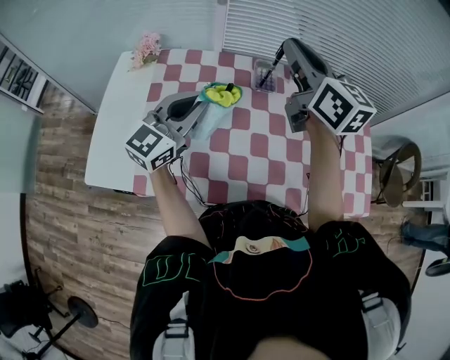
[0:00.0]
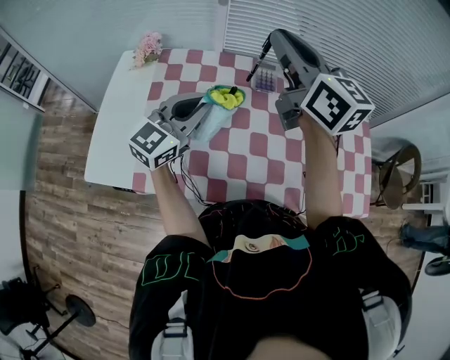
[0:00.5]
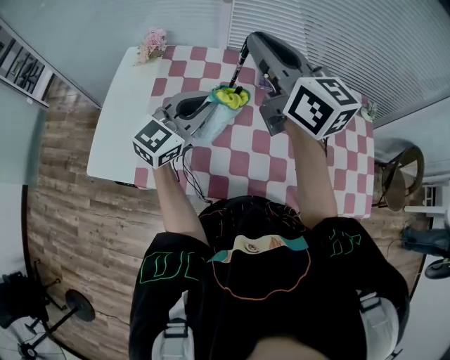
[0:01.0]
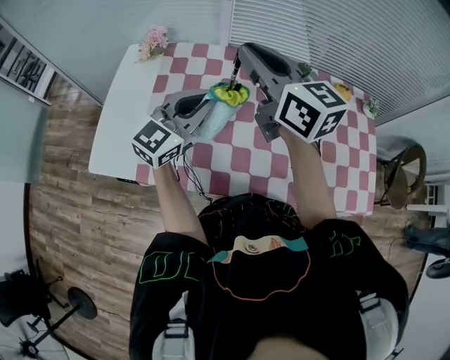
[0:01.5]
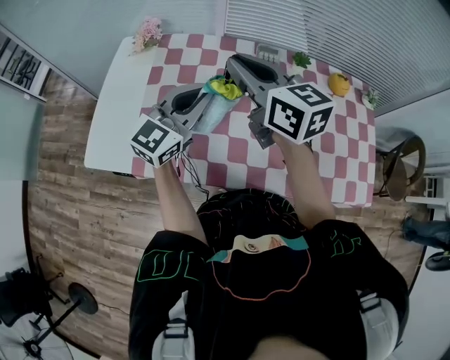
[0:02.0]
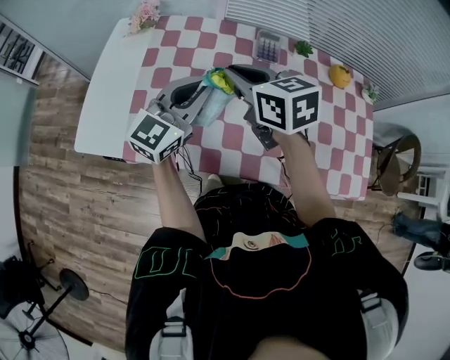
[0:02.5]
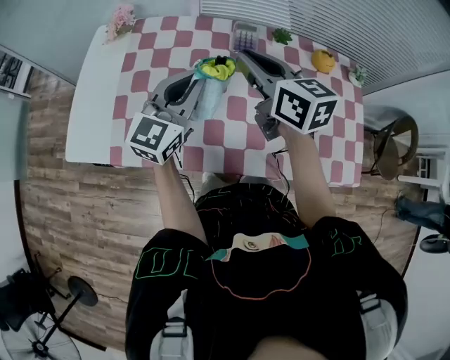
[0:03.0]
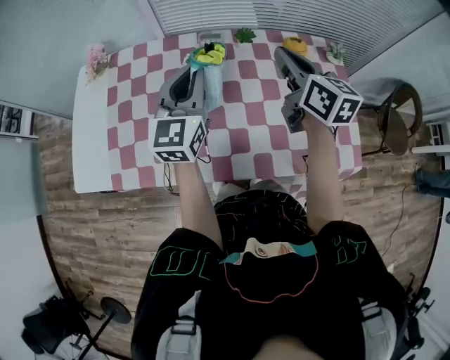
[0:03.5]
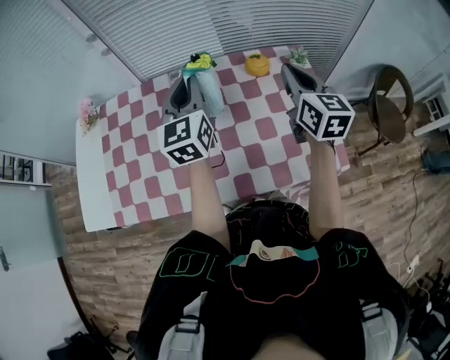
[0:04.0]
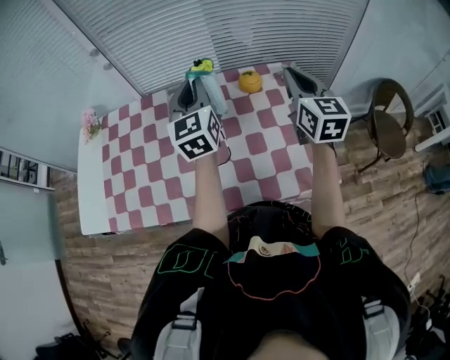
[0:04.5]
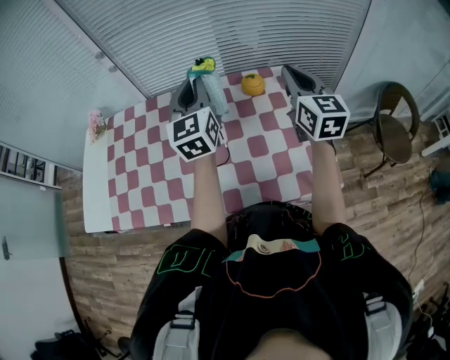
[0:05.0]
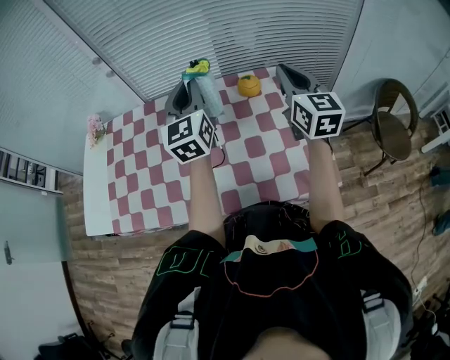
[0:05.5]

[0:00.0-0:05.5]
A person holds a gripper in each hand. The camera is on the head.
0:00.0 to 0:02.0: The right gripper shifts roughly 15 cm to the left, backward and downward.
0:02.0 to 0:03.5: The right gripper heads to the right, covering approximately 30 cm, and rotates approximately 30 degrees. Meanwhile the left gripper shifts about 15 cm to the right.
0:03.5 to 0:05.5: The grippers both shift to the right by approximately 20 cm. The right gripper rotates approximately 20 degrees.

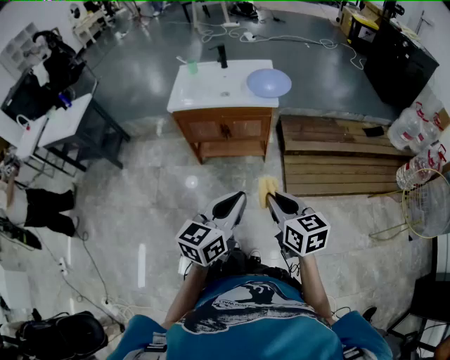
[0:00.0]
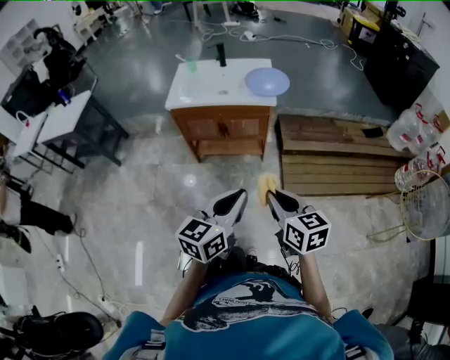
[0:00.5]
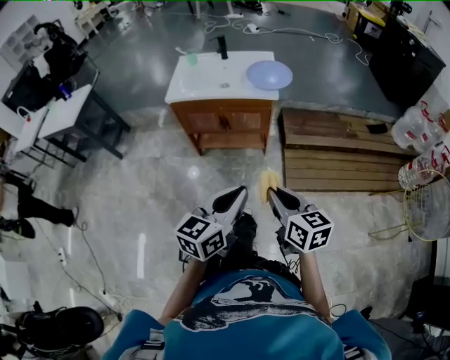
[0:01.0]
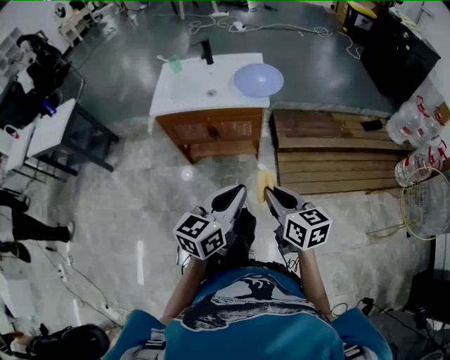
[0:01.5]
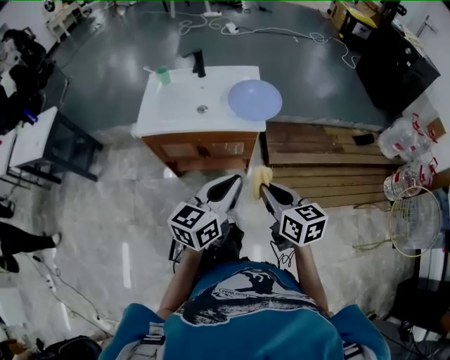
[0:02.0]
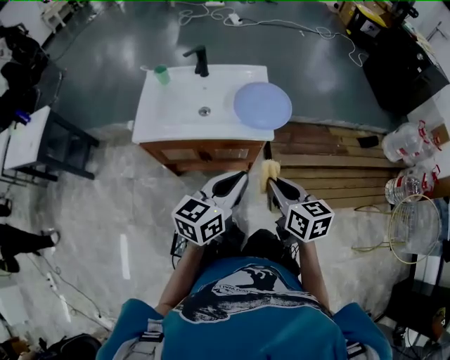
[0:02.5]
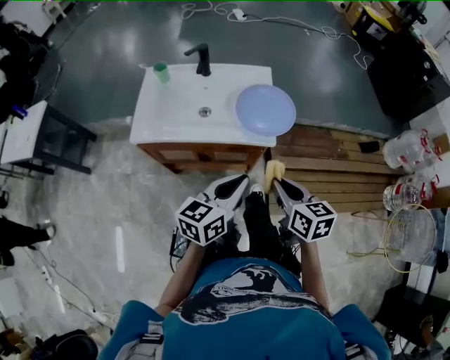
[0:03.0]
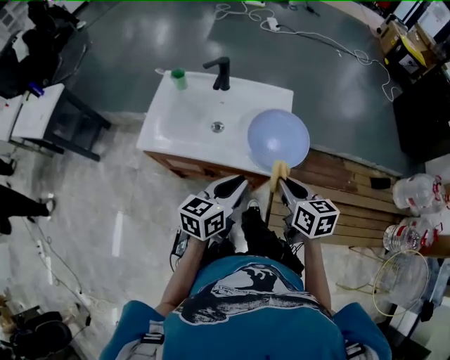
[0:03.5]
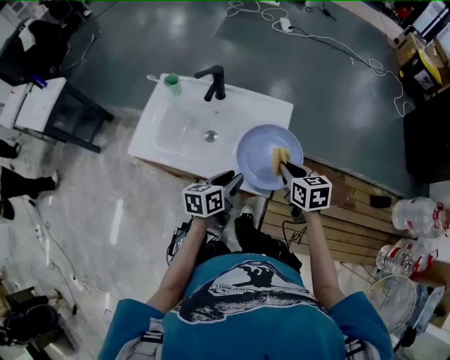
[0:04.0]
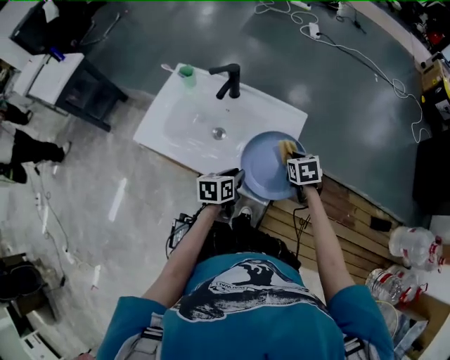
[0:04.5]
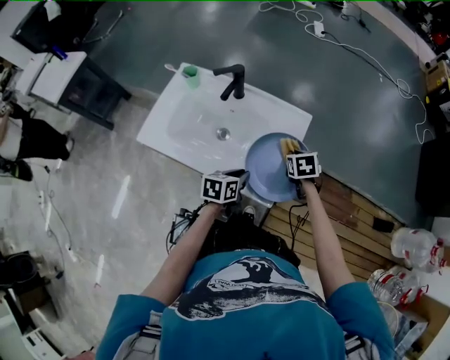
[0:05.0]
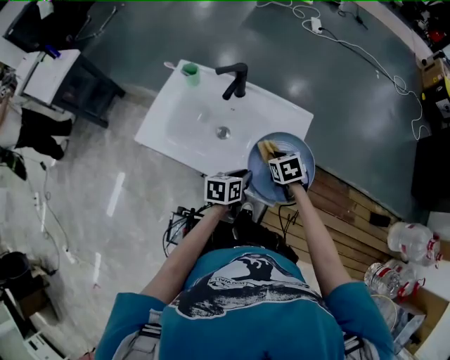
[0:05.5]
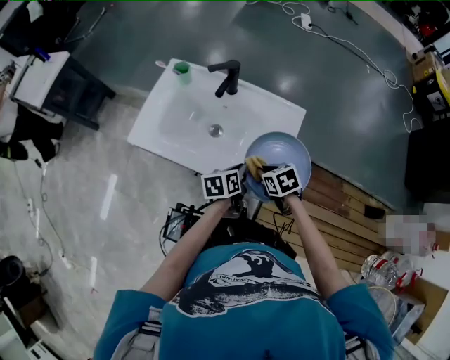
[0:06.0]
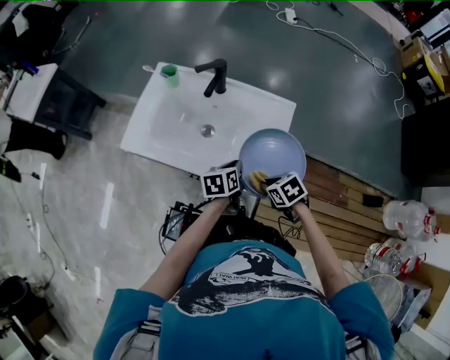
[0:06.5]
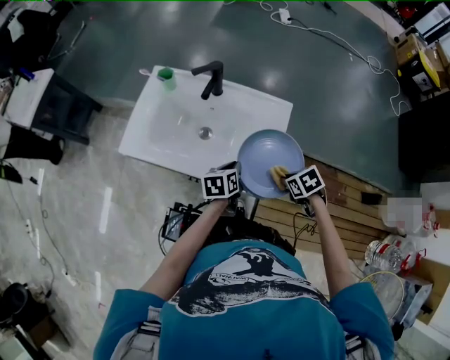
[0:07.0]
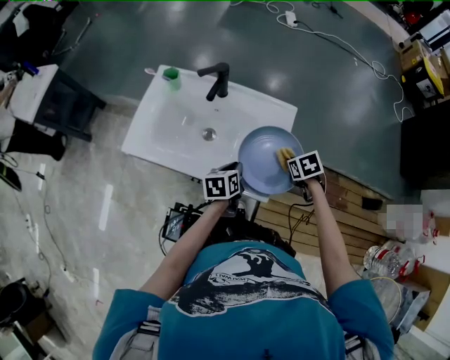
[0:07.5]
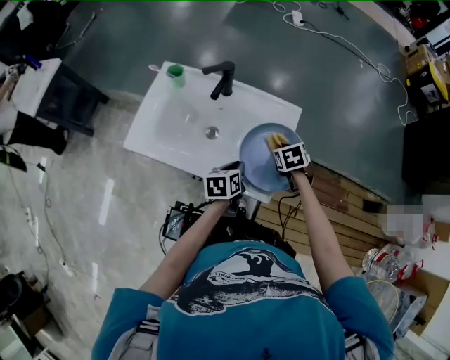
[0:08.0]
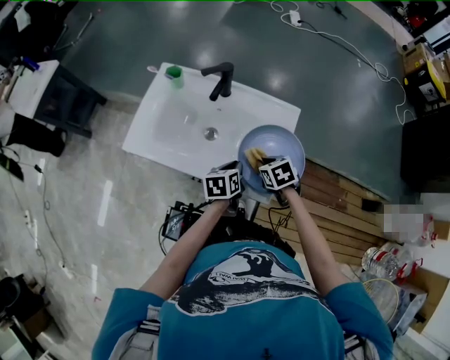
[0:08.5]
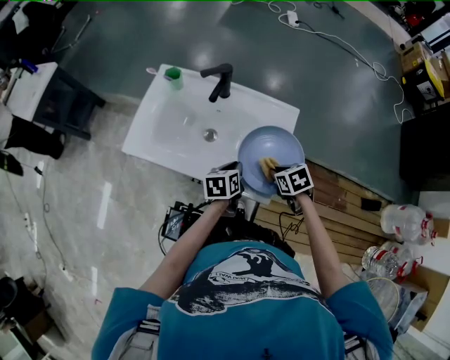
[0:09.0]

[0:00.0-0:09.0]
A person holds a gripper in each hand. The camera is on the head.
0:00.0 to 0:02.0: The two grippers go about 25 cm forward.
0:02.0 to 0:04.5: The right gripper is displaced forward by approximately 50 cm, and tilts its fingers approximately 30 degrees downward; the left gripper is displaced forward and downward by approximately 40 cm, and tilts its fingers approximately 30 degrees downward.
0:04.5 to 0:07.0: The right gripper moves roughly 10 cm, and rotates approximately 20 degrees.
0:07.0 to 0:09.0: The right gripper reaches roughly 15 cm forward, then returns.

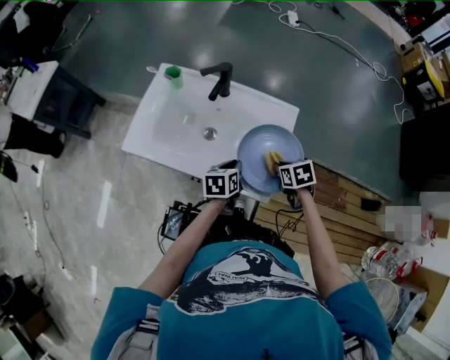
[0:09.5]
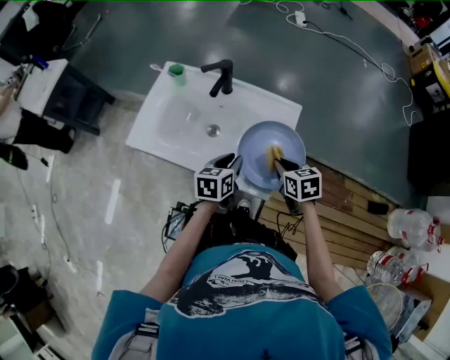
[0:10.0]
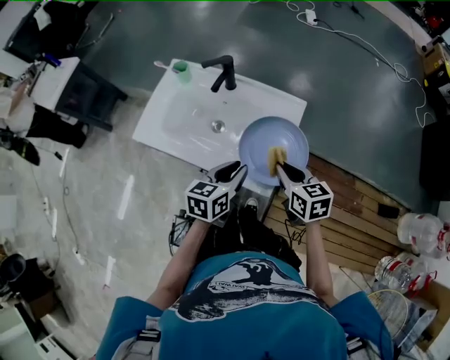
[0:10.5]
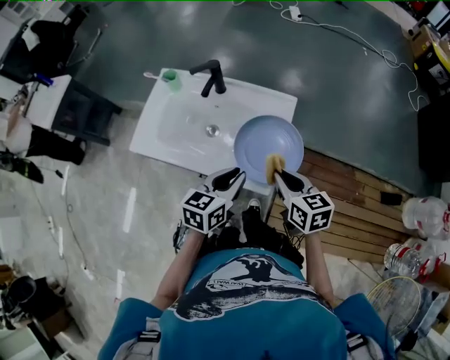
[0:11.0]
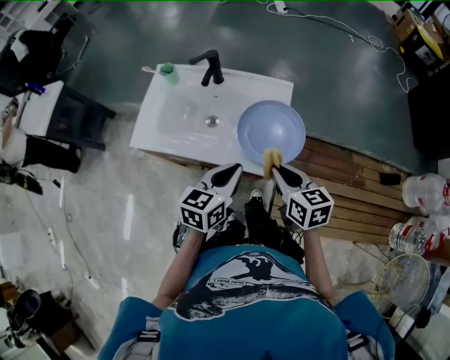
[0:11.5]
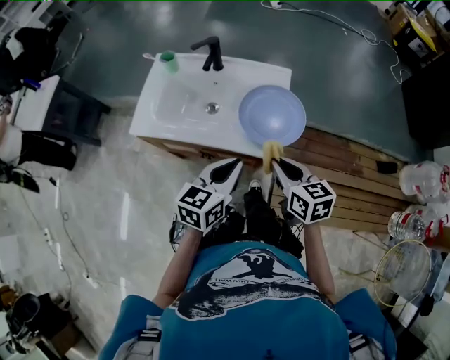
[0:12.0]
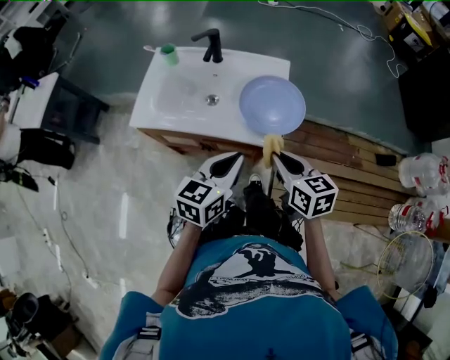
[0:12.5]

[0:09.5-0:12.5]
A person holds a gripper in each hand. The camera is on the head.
0:09.5 to 0:11.0: The two grippers go roughly 15 cm upward and backward. The right gripper tilts its fingers approximately 30 degrees upward. Meanwhile the left gripper rotates some 20 degrees.
0:11.0 to 0:12.5: Both grippers travel together backward, some 10 cm.

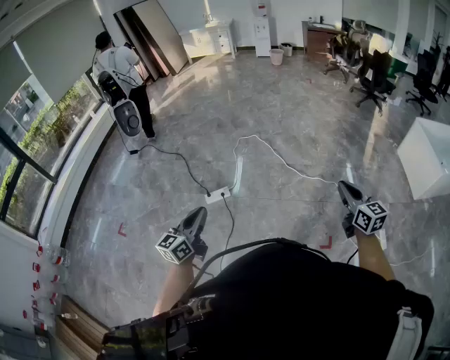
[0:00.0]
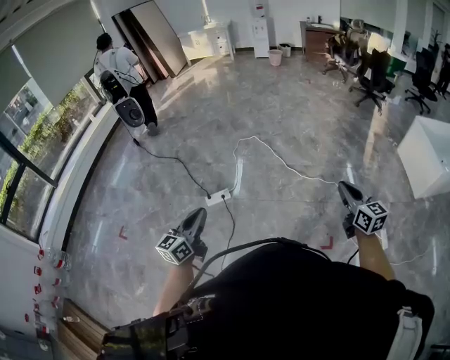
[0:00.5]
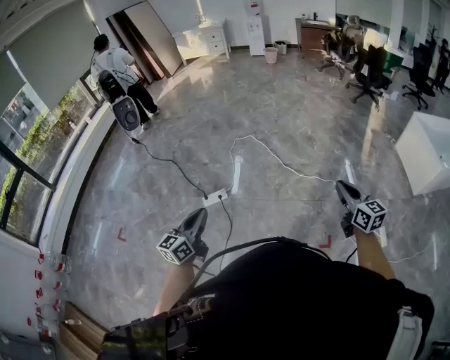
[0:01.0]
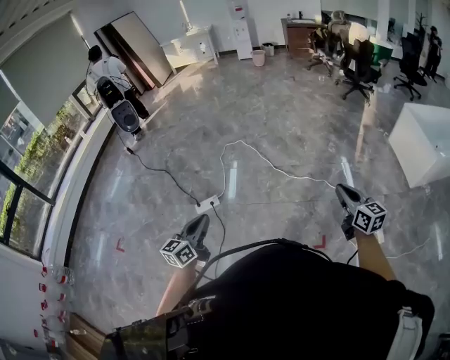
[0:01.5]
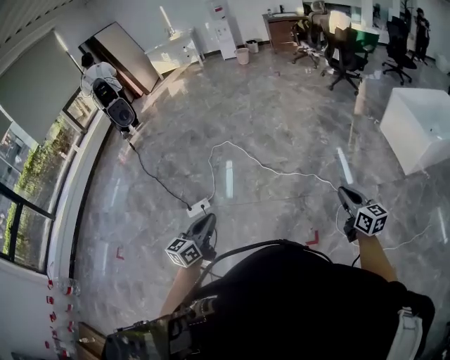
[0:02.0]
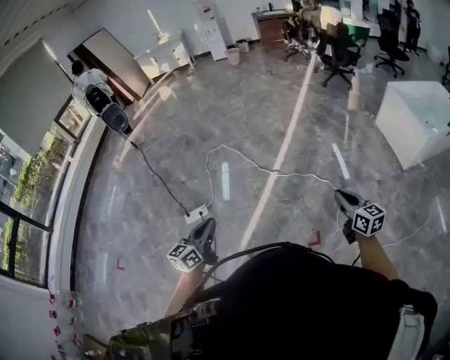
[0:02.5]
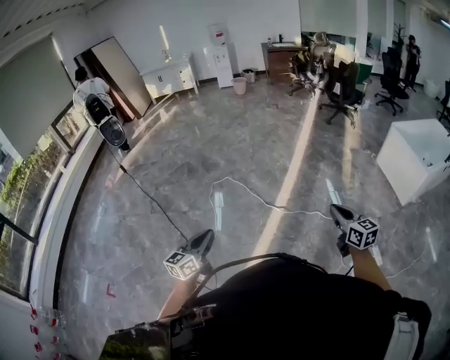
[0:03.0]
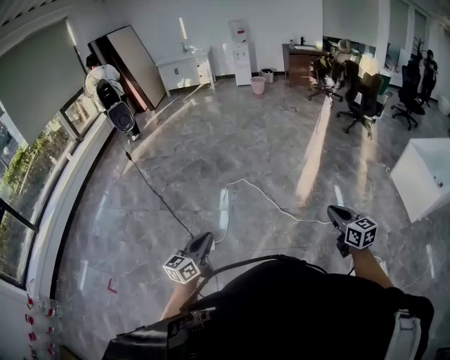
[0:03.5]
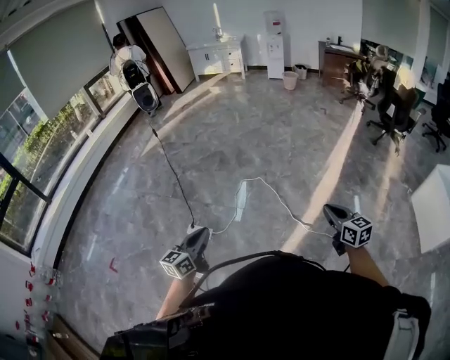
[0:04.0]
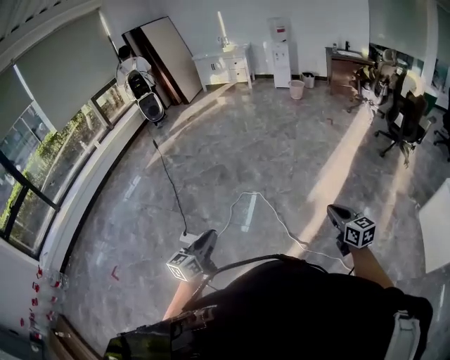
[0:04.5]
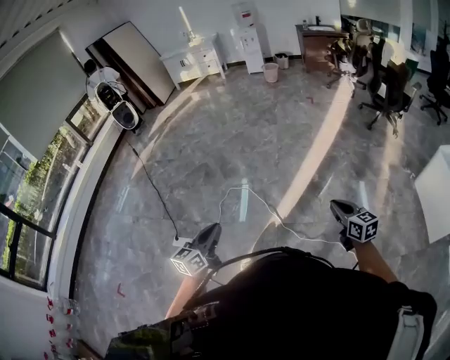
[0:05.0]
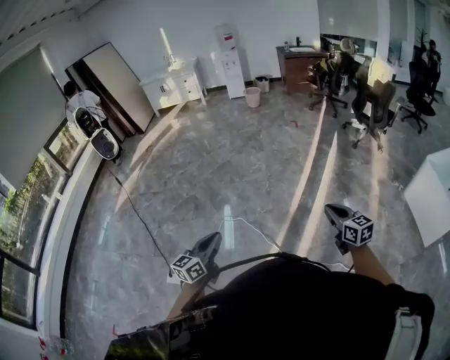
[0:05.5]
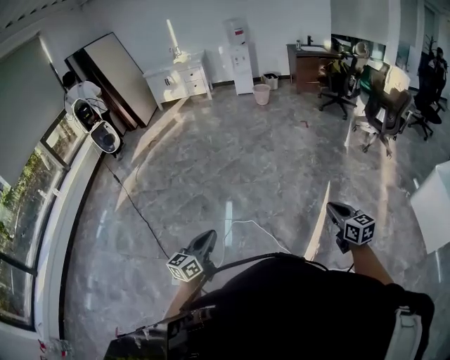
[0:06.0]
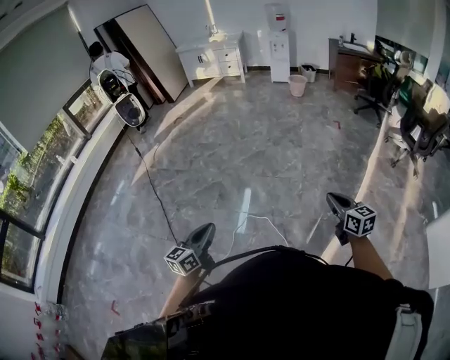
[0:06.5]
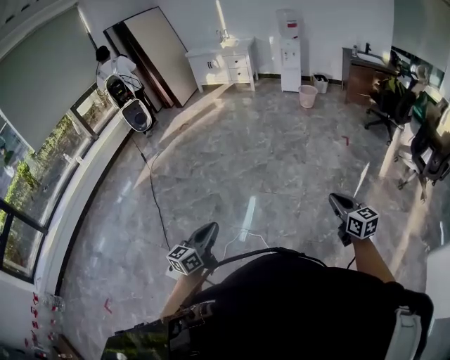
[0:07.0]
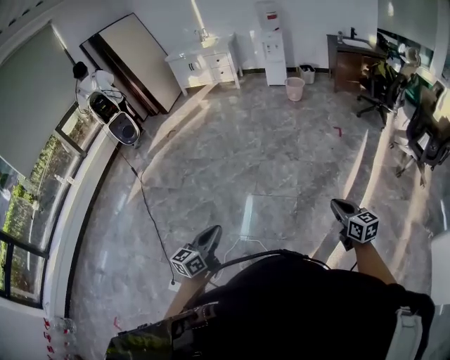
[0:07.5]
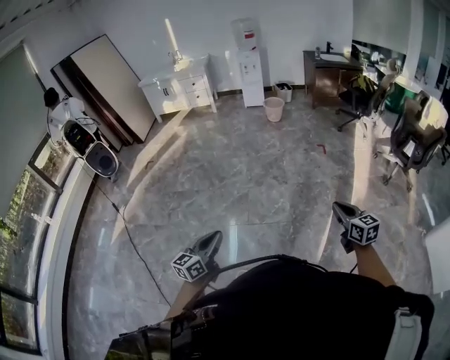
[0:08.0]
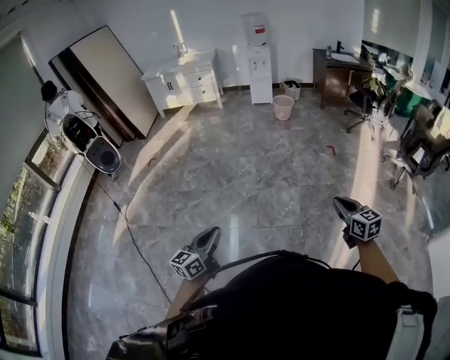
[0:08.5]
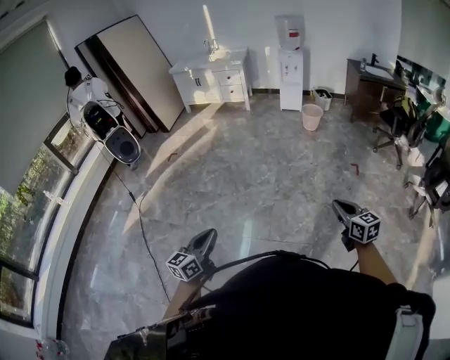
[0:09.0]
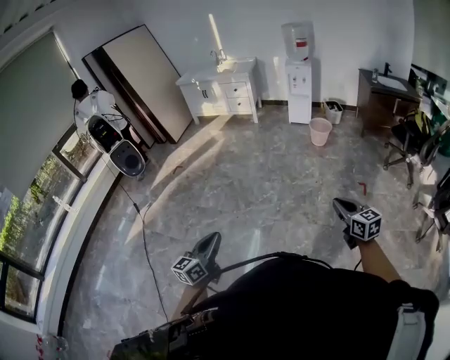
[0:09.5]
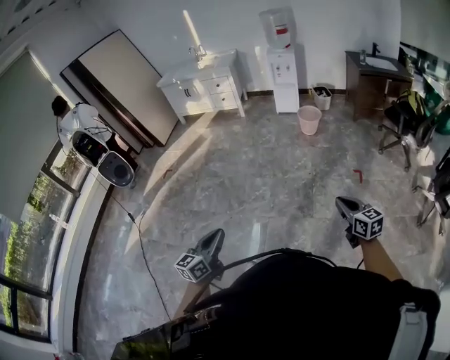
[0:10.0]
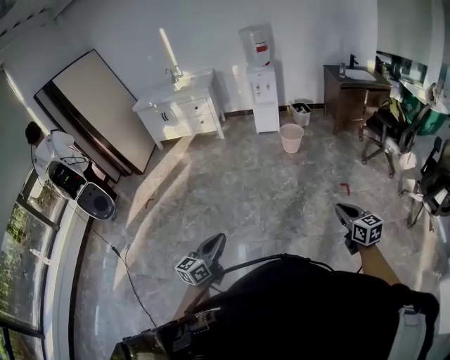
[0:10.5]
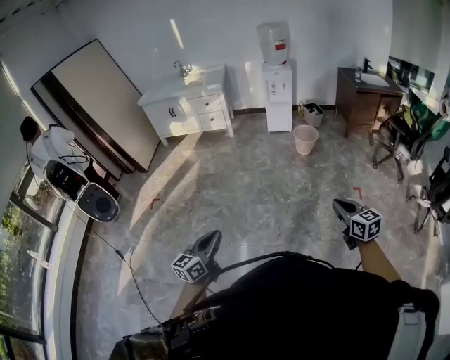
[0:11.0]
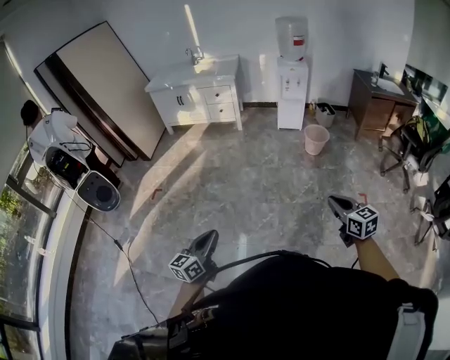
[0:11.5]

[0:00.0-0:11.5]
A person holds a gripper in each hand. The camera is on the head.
0:00.0 to 0:02.0: Both grippers move to the right, some 25 cm.
0:02.0 to 0:04.0: The two grippers travel together, forward and to the left, approximately 50 cm.
0:04.0 to 0:06.0: The pair of grippers is taken forward, approximately 50 cm.
0:06.0 to 0:07.5: Both grippers move forward, some 35 cm.
0:07.5 to 0:09.5: The two grippers travel together, forward, approximately 60 cm.
0:09.5 to 0:11.5: The two grippers travel together, forward and to the left, approximately 40 cm.
